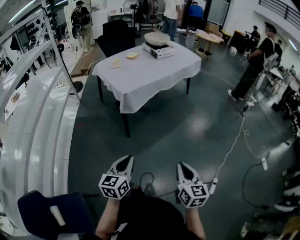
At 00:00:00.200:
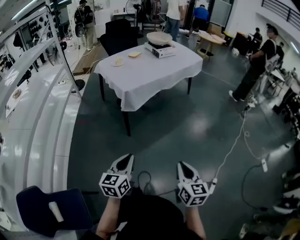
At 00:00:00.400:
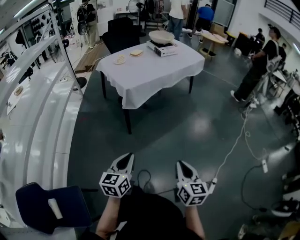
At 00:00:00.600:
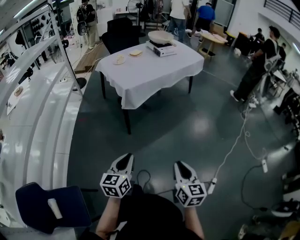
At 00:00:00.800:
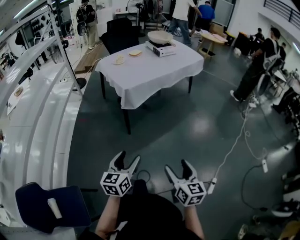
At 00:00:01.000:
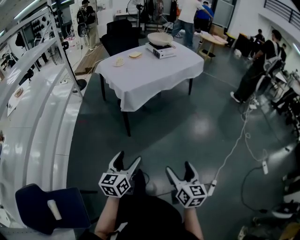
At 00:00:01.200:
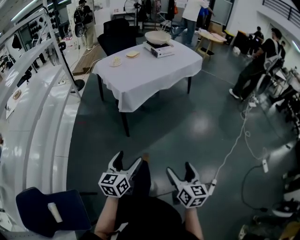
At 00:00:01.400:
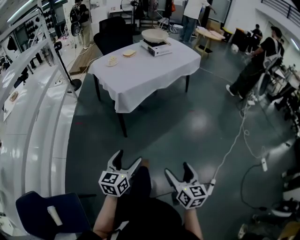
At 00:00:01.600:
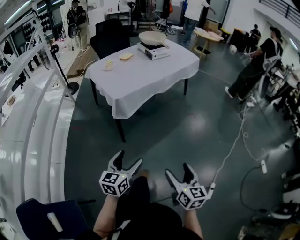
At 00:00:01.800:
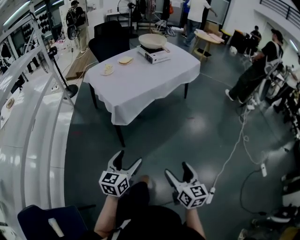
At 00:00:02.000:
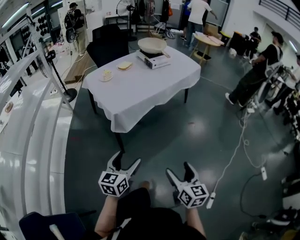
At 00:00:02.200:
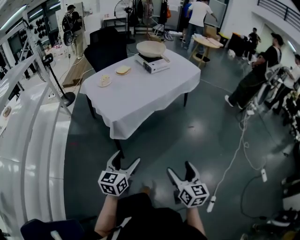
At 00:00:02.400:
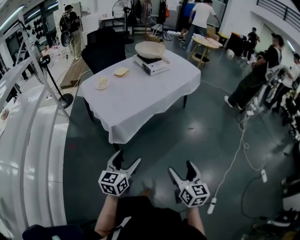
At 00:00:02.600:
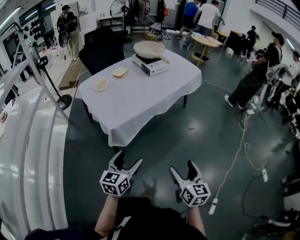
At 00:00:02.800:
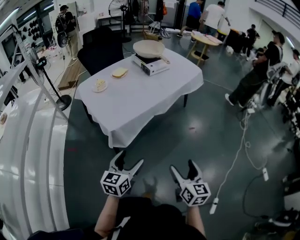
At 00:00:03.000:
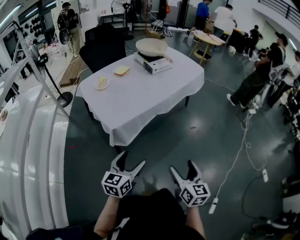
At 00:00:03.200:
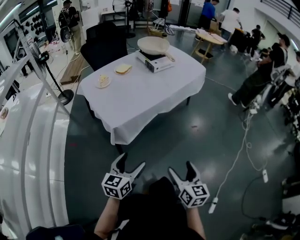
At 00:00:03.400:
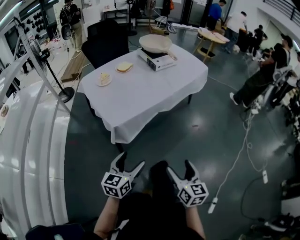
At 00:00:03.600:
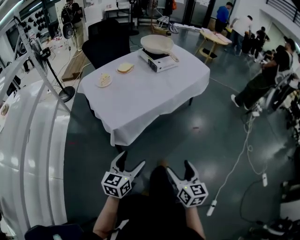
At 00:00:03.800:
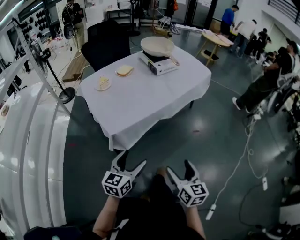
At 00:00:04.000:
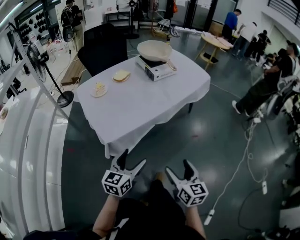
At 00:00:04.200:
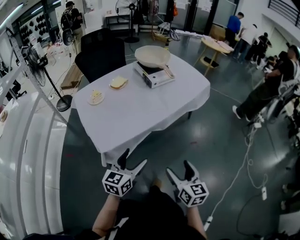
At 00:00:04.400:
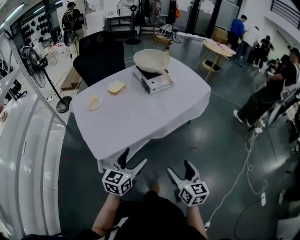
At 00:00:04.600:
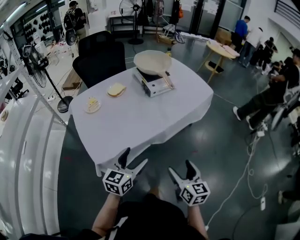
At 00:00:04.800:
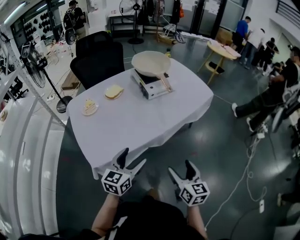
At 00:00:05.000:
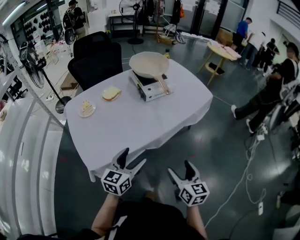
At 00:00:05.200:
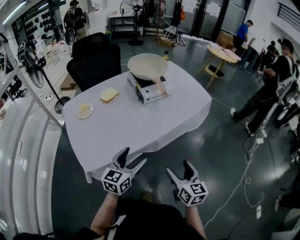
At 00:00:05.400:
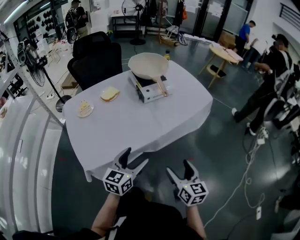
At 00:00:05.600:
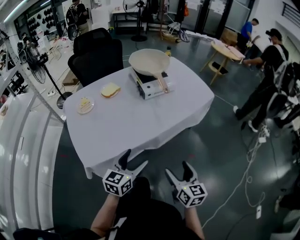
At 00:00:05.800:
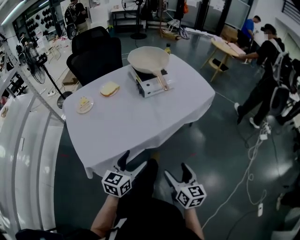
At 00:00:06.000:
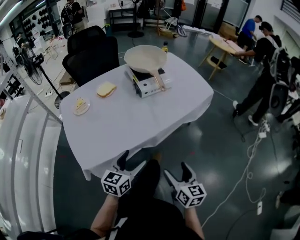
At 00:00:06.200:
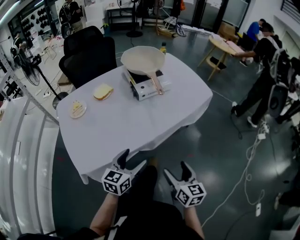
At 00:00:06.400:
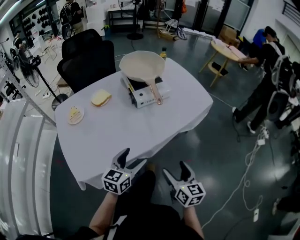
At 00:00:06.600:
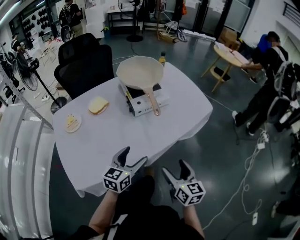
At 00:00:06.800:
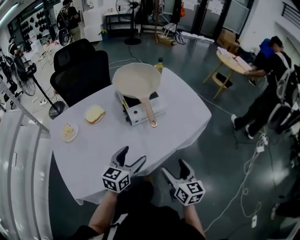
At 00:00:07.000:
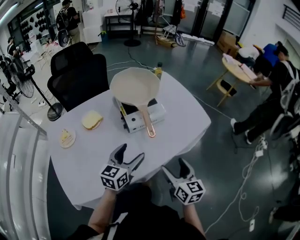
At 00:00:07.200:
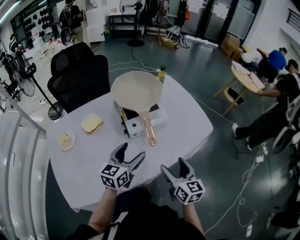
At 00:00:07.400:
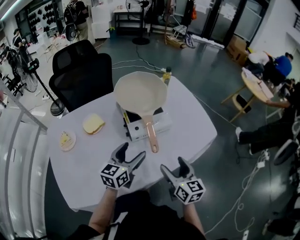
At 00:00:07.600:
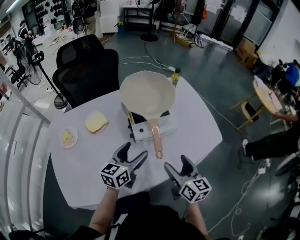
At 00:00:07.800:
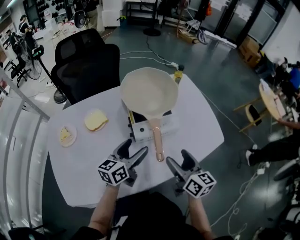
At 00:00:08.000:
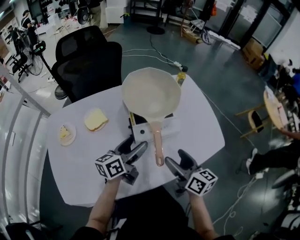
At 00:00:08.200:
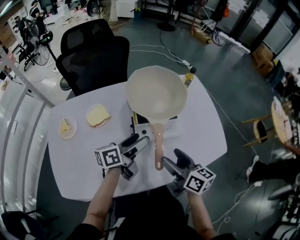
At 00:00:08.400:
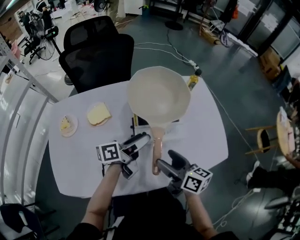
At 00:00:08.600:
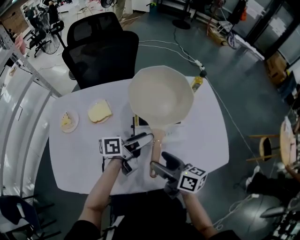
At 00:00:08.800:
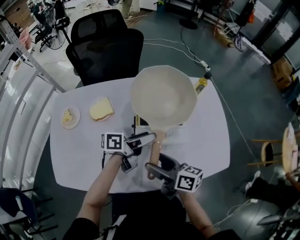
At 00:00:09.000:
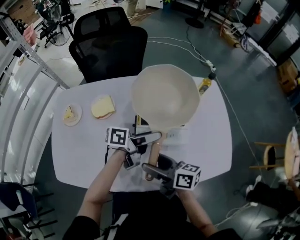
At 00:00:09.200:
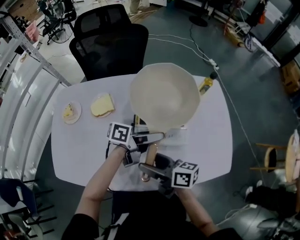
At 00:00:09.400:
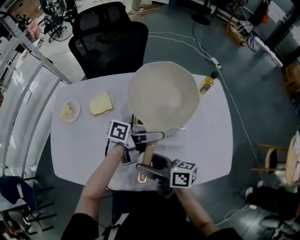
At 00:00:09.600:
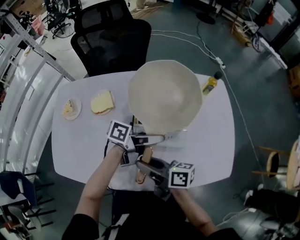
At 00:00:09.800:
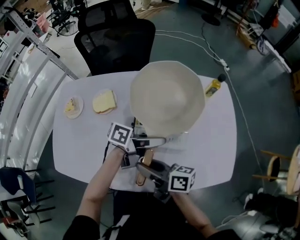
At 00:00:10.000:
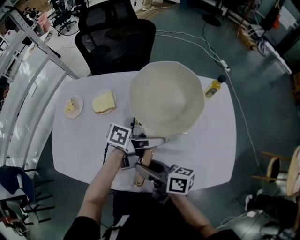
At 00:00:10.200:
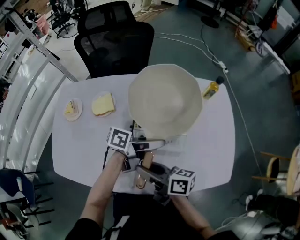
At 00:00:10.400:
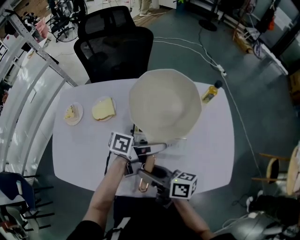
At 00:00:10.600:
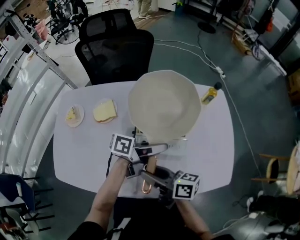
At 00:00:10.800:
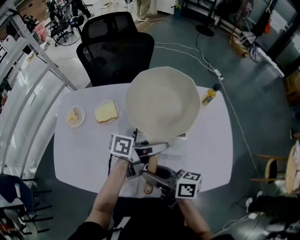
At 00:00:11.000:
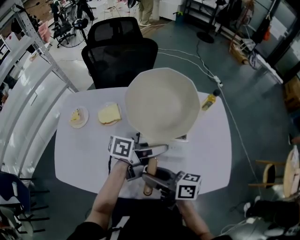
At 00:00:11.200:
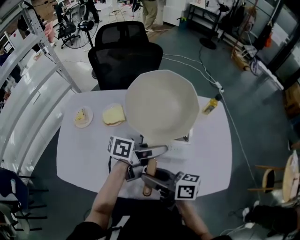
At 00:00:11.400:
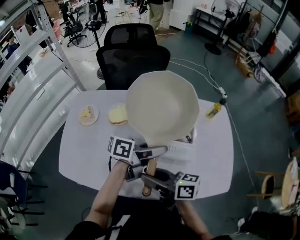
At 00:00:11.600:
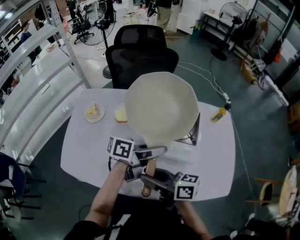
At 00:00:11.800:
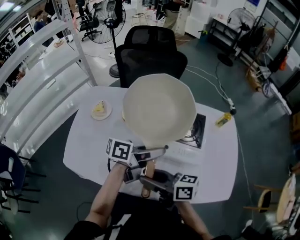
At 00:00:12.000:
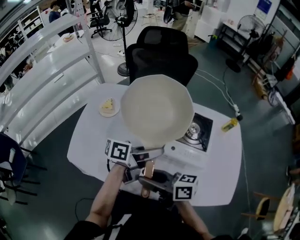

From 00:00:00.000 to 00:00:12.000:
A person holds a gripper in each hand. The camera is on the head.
From 00:00:00.000 to 00:00:01.600: The left gripper goes approximately 10 cm forward and to the right, and opens its fingers. Meanwhile the right gripper heads forward, covering approximately 10 cm, and opens up.
From 00:00:01.600 to 00:00:03.000: The grippers both shift forward by approximately 25 cm.
From 00:00:03.000 to 00:00:04.400: The two grippers go approximately 25 cm forward.
From 00:00:04.400 to 00:00:06.000: The left gripper shifts about 15 cm forward, to the right and downward. The right gripper is displaced forward and to the right by about 15 cm.
From 00:00:06.000 to 00:00:07.600: The two grippers go some 40 cm forward.
From 00:00:07.600 to 00:00:09.000: The left gripper goes roughly 15 cm forward and to the right, and rotates around the line of its fingers by approximately 50 degrees, counterclockwise from behind; the right gripper shifts roughly 15 cm forward and to the left, and rotates about 60 degrees.
From 00:00:09.000 to 00:00:10.400: The left gripper closes. Meanwhile the right gripper closes its fingers.
From 00:00:10.400 to 00:00:12.000: The right gripper changes place by roughly 15 cm, and swivels about 20 degrees. The left gripper changes place by about 20 cm, and changes its angle by roughly 20 degrees.

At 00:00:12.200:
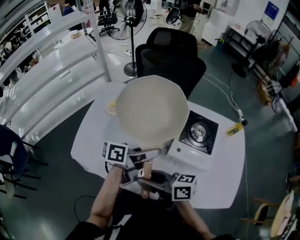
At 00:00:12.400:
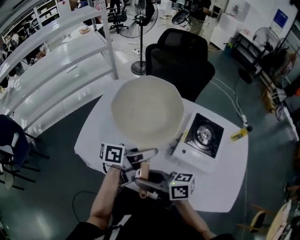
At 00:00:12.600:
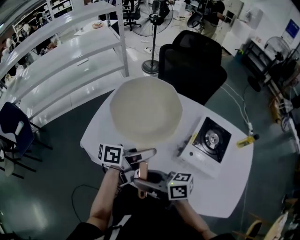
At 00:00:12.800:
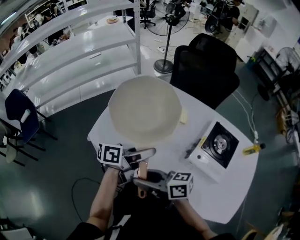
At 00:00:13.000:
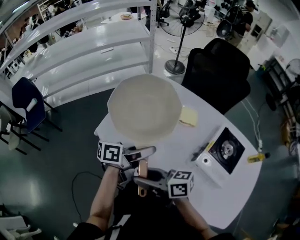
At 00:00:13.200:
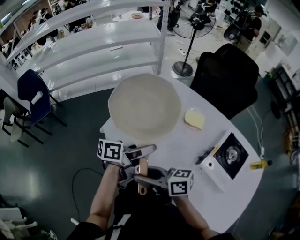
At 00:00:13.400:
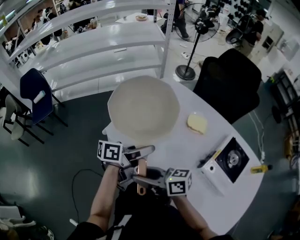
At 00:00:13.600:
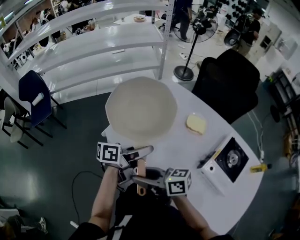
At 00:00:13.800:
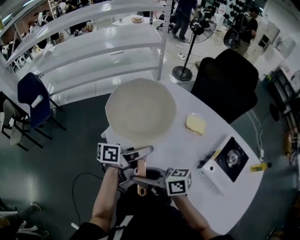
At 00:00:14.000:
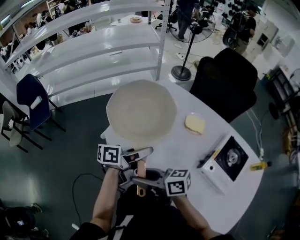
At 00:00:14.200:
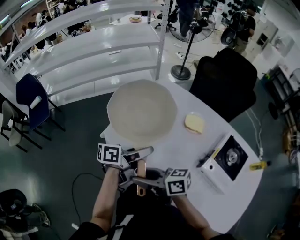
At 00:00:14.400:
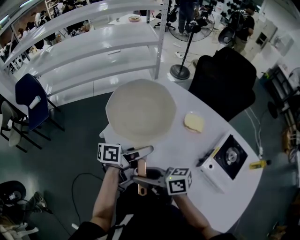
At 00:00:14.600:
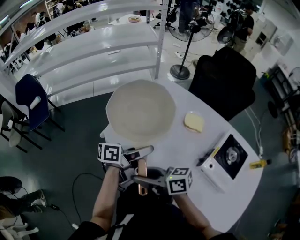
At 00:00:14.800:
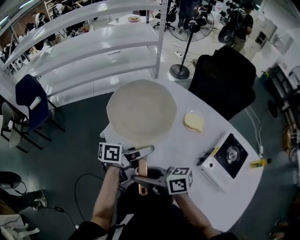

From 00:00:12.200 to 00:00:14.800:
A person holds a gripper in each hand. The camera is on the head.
From 00:00:12.200 to 00:00:13.400: The right gripper moves approximately 20 cm, and swivels some 30 degrees. Meanwhile the left gripper shifts by roughly 25 cm, and changes its angle by roughly 30 degrees.
From 00:00:13.400 to 00:00:14.800: The grippers make only small movements.

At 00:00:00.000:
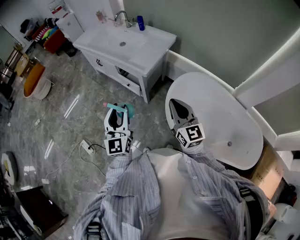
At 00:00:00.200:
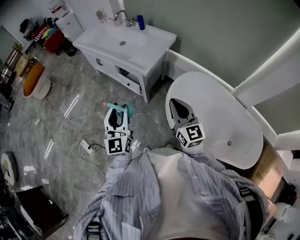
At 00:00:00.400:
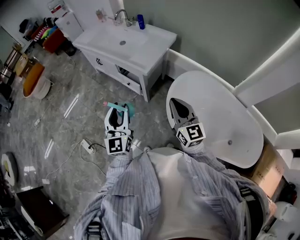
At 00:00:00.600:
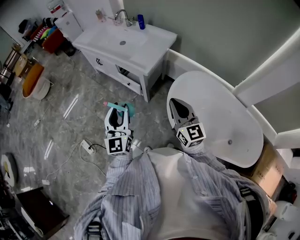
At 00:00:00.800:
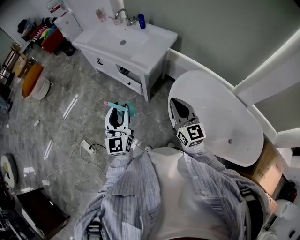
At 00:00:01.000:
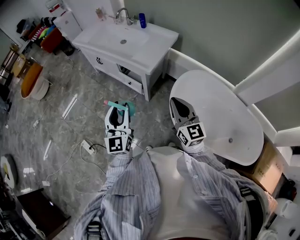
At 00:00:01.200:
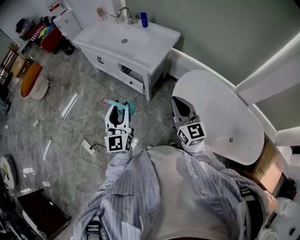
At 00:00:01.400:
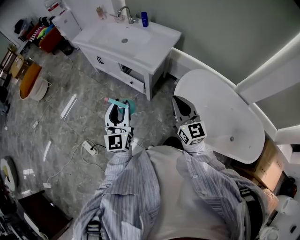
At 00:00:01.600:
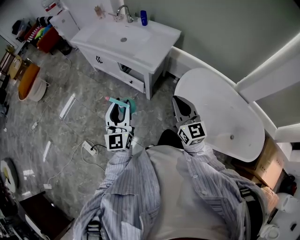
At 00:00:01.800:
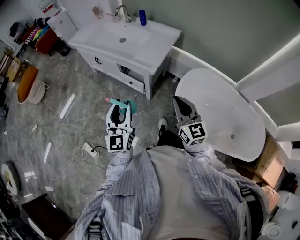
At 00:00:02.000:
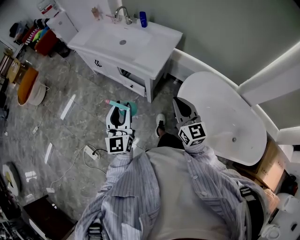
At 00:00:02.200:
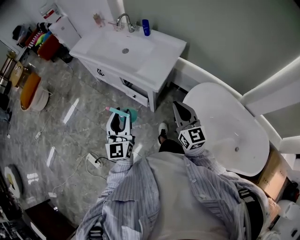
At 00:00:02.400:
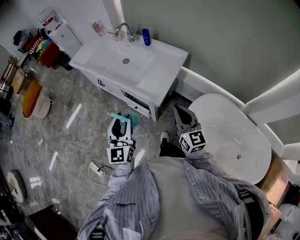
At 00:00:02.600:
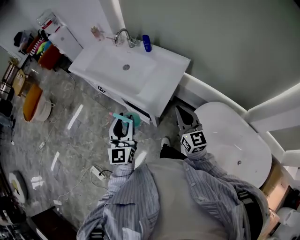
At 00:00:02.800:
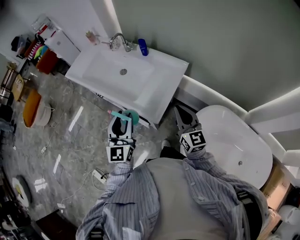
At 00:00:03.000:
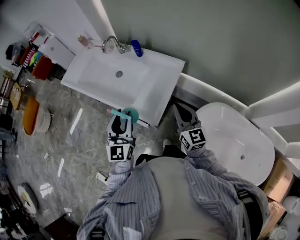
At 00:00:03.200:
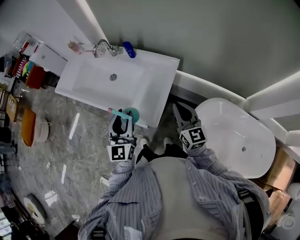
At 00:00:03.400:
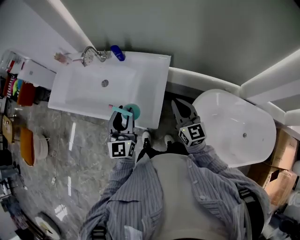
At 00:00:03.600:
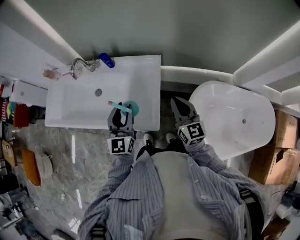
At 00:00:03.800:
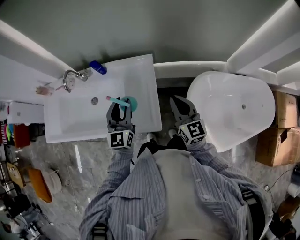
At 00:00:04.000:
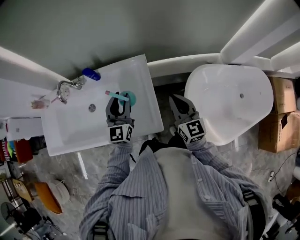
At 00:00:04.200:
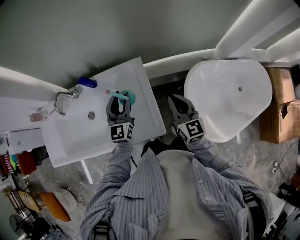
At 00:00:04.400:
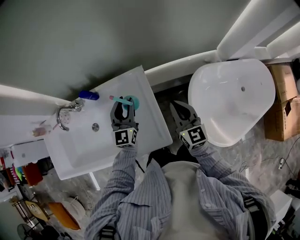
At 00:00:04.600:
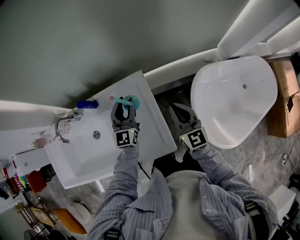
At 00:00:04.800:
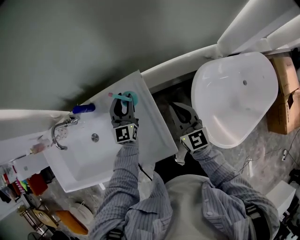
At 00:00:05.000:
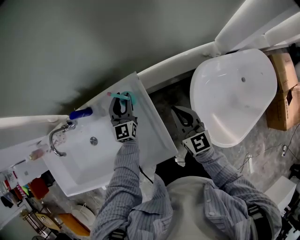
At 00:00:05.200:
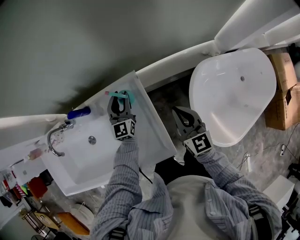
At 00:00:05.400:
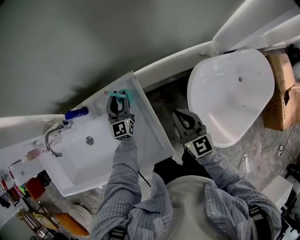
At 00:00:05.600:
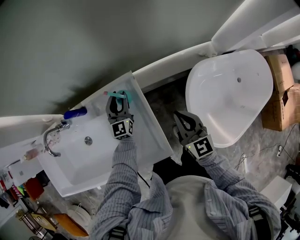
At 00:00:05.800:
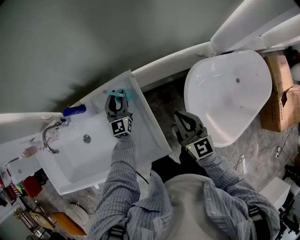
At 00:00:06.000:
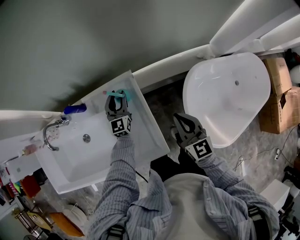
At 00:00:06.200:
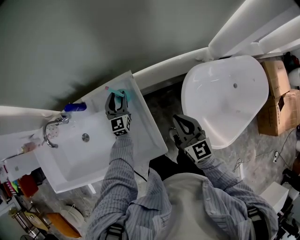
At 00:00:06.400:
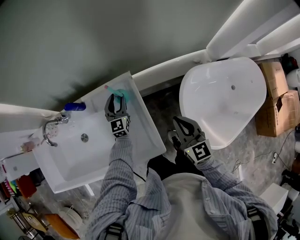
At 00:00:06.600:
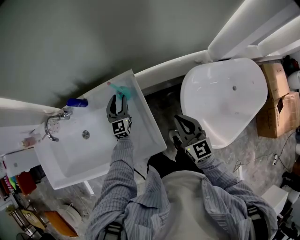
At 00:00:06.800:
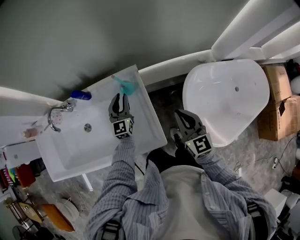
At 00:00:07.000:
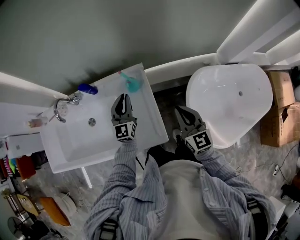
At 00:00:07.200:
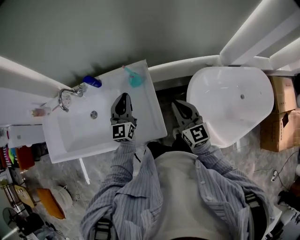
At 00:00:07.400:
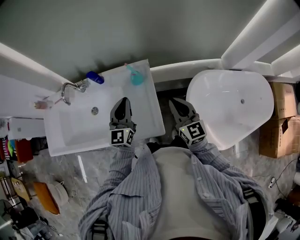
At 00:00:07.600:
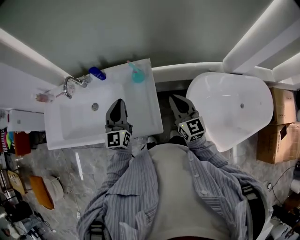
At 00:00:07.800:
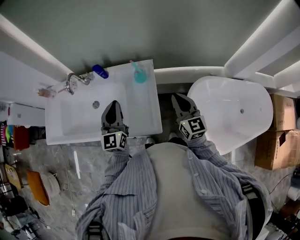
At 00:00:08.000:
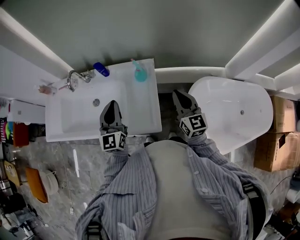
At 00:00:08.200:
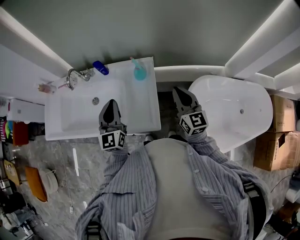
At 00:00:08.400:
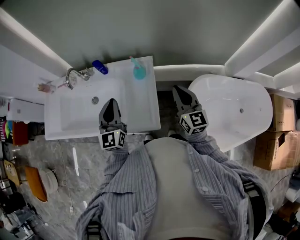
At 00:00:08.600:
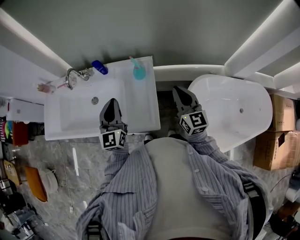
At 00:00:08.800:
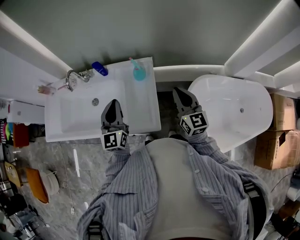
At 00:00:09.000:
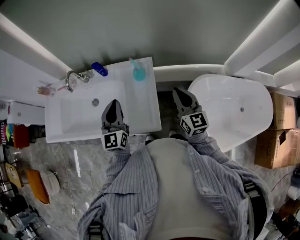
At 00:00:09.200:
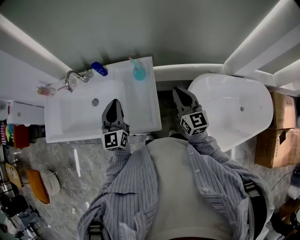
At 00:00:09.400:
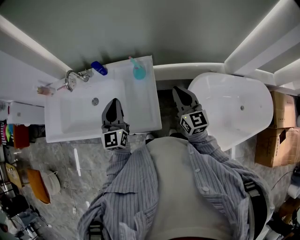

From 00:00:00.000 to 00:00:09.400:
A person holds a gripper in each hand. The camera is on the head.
From 00:00:00.000 to 00:00:01.600: Both grippers travel together to the left, about 5 cm.
From 00:00:01.600 to 00:00:03.200: The pair of grippers is taken forward, about 40 cm.
From 00:00:03.200 to 00:00:04.800: The left gripper ends up about 40 cm from where it was, and turns by some 40 degrees; the right gripper moves about 15 cm, and changes its angle by approximately 40 degrees.
From 00:00:04.800 to 00:00:06.200: The left gripper heads downward, covering approximately 5 cm, while the right gripper is displaced backward by approximately 5 cm.
From 00:00:06.200 to 00:00:07.800: The left gripper is displaced backward and upward by approximately 35 cm, and closes up. Meanwhile the right gripper shifts about 10 cm upward.
From 00:00:07.800 to 00:00:09.400: The grippers make only small movements.
